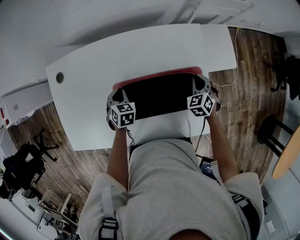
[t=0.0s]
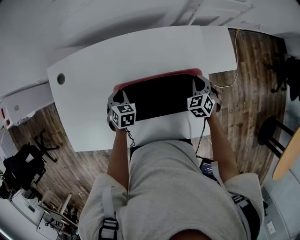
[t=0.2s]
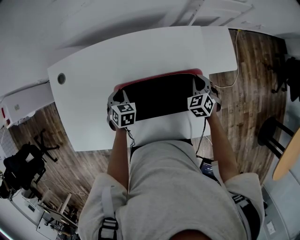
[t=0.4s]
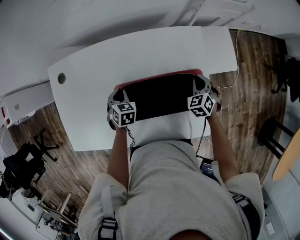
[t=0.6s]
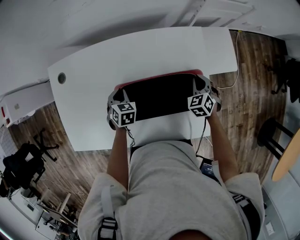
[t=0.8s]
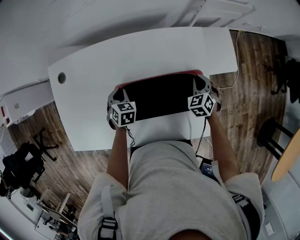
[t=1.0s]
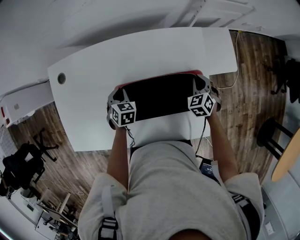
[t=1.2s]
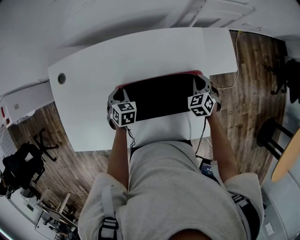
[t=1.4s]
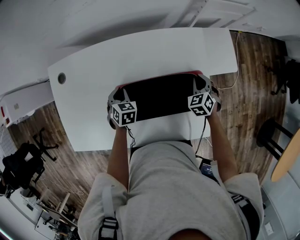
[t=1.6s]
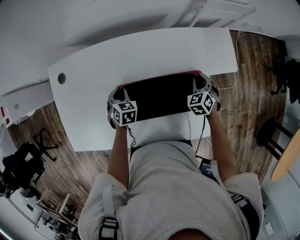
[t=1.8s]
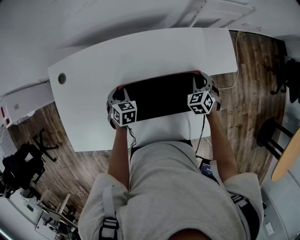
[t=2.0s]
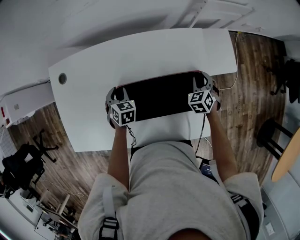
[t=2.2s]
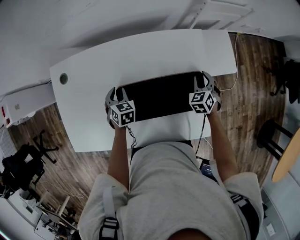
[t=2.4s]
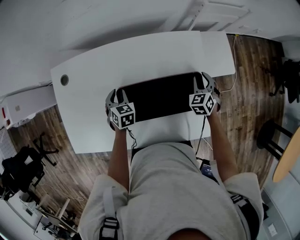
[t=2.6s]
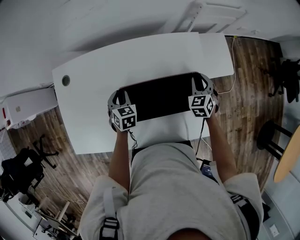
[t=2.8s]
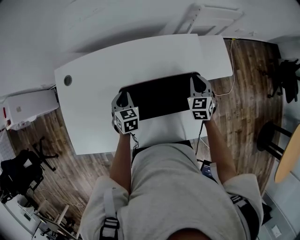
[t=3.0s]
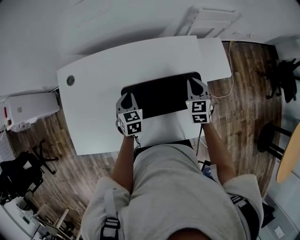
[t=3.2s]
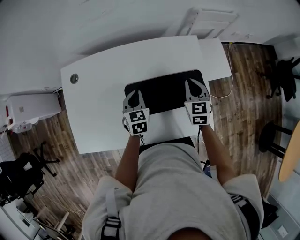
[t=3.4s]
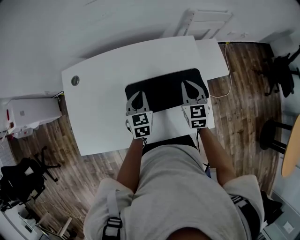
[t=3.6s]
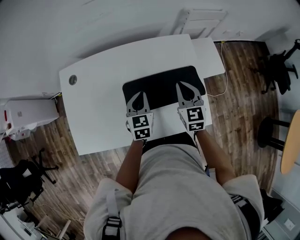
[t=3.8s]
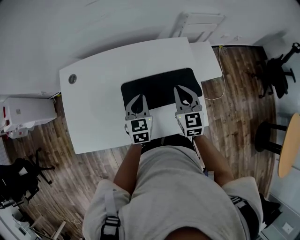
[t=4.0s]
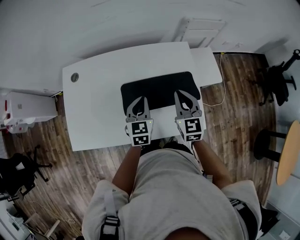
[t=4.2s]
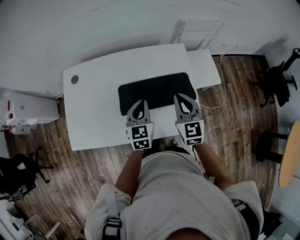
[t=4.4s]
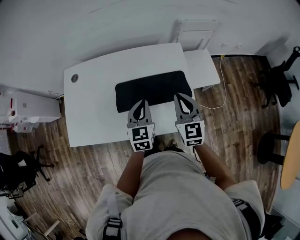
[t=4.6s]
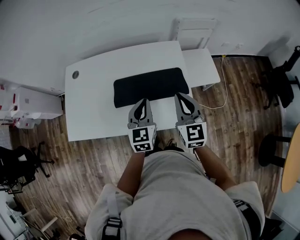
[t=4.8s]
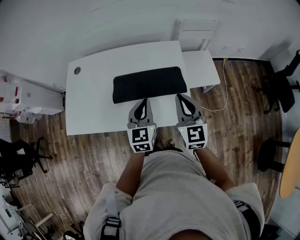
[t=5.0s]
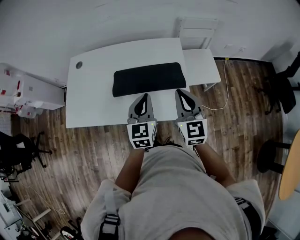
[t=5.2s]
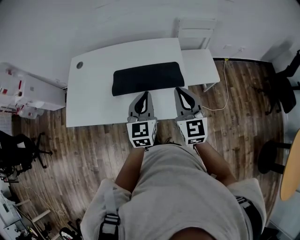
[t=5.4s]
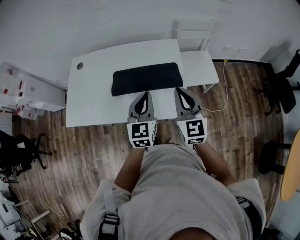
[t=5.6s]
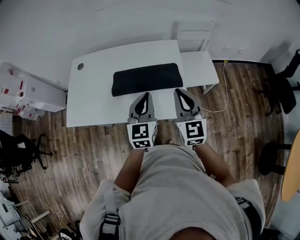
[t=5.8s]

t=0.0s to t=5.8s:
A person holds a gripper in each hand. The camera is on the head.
t=0.0s to t=1.4s: Neither gripper changes place.
t=1.4s to t=2.8s: The right gripper opens its fingers.
t=2.8s to t=4.4s: The right gripper is displaced upward, backward and to the left by roughly 25 cm, turns by roughly 30 degrees, and closes, while the left gripper shifts about 25 cm upward, backward and to the right, rotates some 30 degrees, and closes up.
t=4.4s to t=5.8s: The two grippers go about 20 cm backward, to the right and upward.

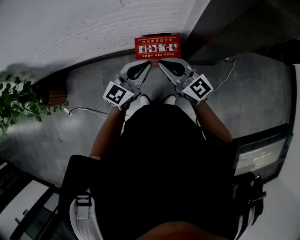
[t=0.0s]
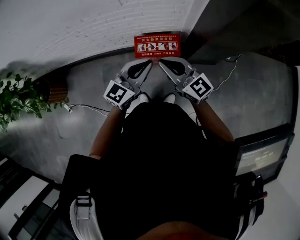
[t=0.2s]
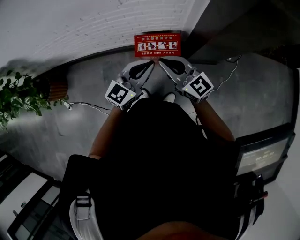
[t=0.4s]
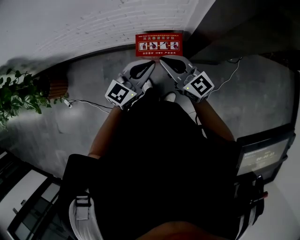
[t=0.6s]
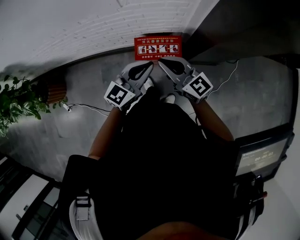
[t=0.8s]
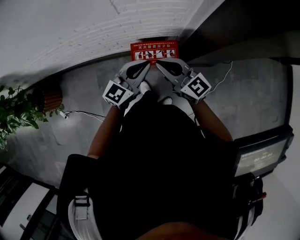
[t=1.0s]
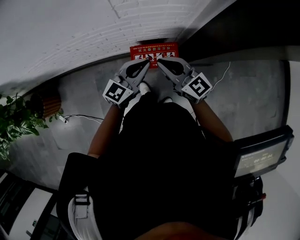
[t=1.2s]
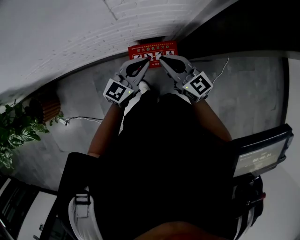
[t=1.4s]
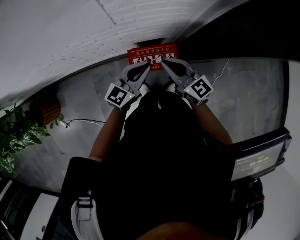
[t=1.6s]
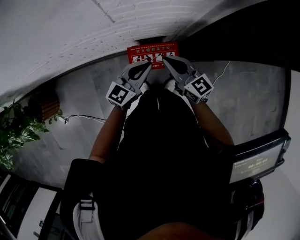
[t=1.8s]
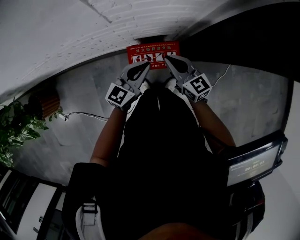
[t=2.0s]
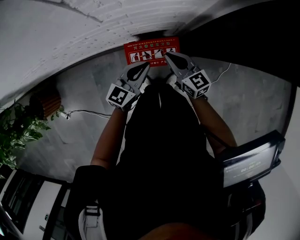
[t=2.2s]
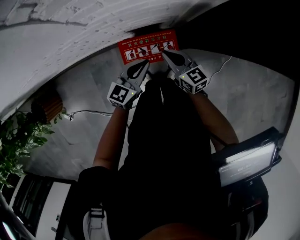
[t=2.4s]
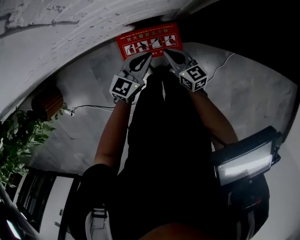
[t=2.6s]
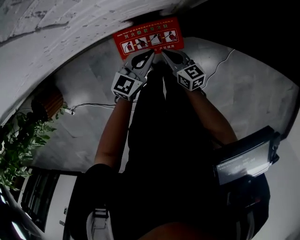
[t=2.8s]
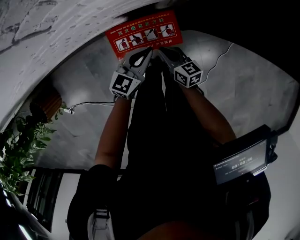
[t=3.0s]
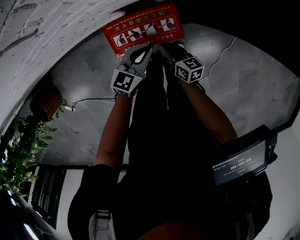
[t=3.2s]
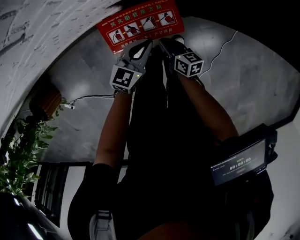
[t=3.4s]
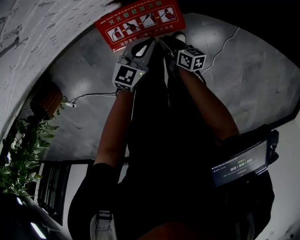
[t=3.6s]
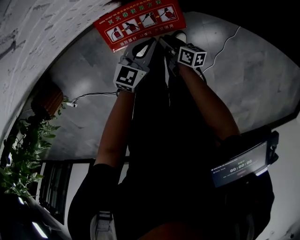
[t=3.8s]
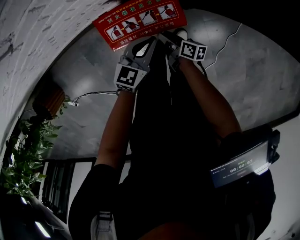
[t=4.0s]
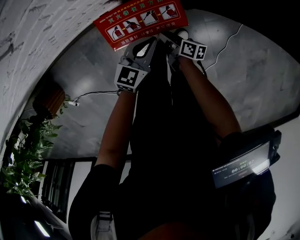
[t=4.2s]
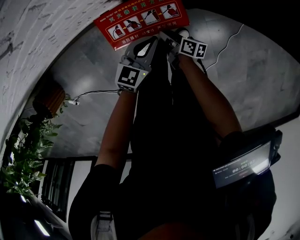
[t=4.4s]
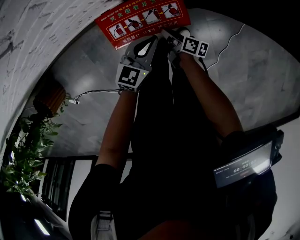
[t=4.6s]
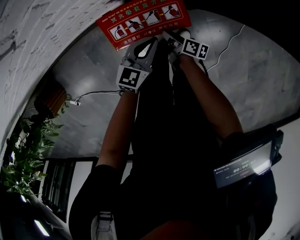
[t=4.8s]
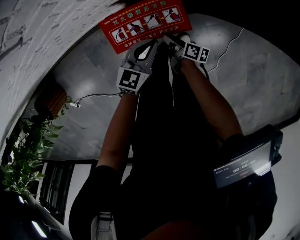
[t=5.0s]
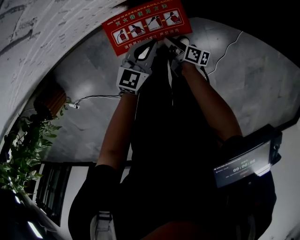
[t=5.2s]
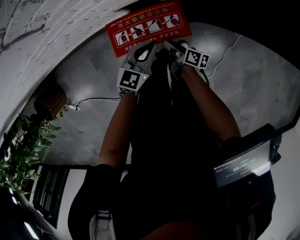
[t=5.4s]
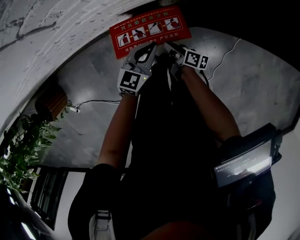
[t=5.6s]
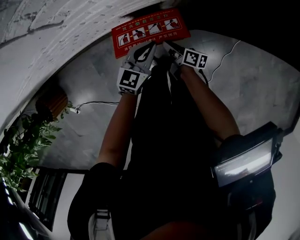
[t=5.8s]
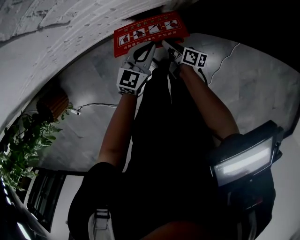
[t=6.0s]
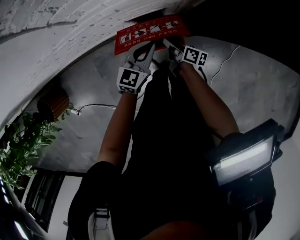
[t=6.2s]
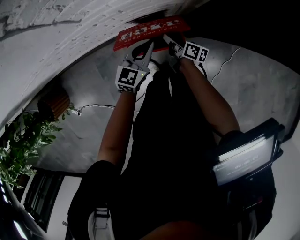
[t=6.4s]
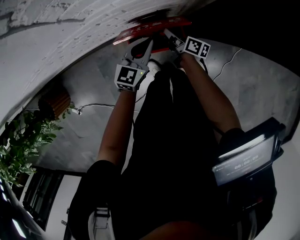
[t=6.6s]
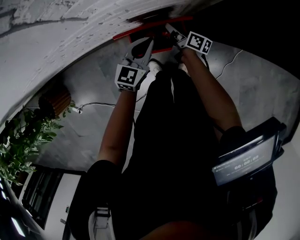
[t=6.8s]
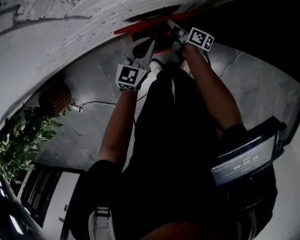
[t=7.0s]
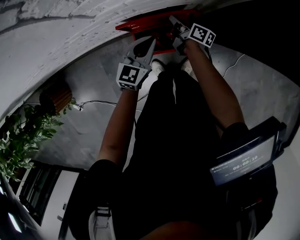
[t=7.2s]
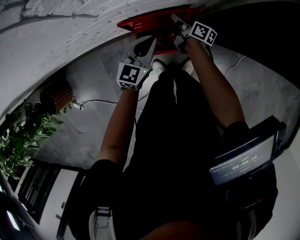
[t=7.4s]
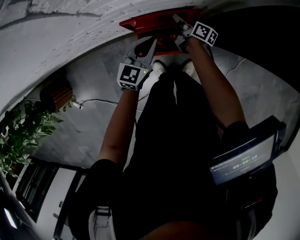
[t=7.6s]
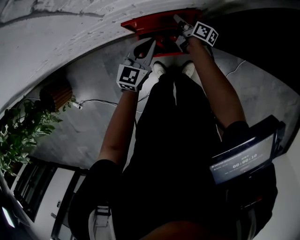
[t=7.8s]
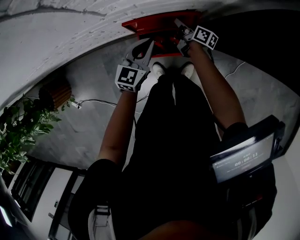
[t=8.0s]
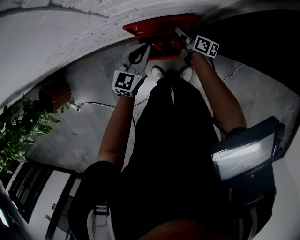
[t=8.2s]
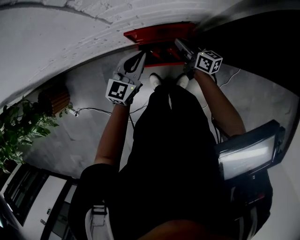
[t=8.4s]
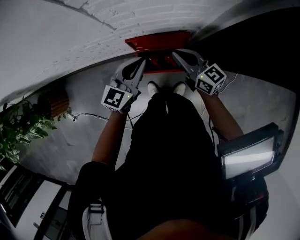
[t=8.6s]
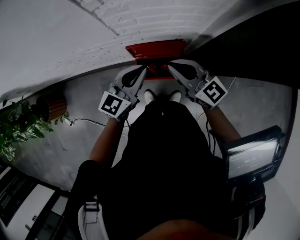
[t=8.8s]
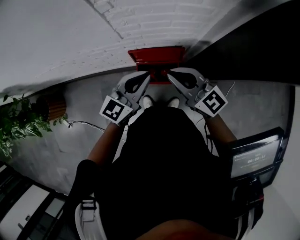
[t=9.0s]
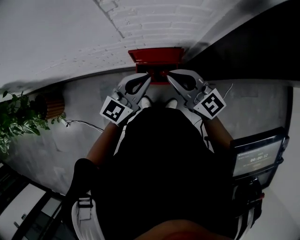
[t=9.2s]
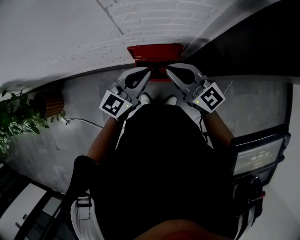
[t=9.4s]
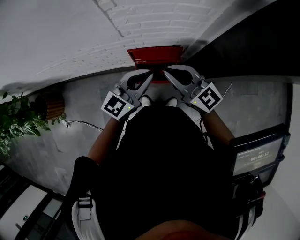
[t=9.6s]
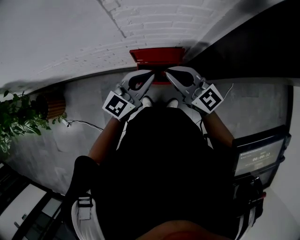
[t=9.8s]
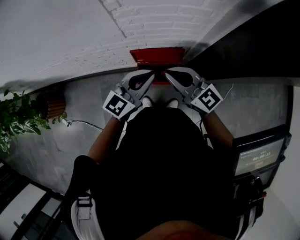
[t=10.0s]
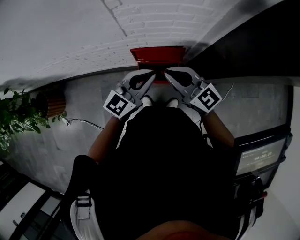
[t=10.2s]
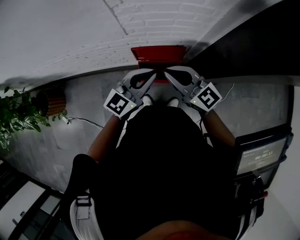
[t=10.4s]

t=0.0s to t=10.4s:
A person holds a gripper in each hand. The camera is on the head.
t=0.0s to t=1.4s: The two grippers go approximately 15 cm forward.
t=1.4s to t=3.0s: Both grippers travel together downward, approximately 35 cm. The right gripper changes its angle by about 40 degrees.
t=3.0s to t=4.4s: The right gripper heads downward, covering roughly 15 cm, changes its angle by about 40 degrees, and opens its fingers; the left gripper shifts some 10 cm downward.
t=4.4s to t=6.0s: The two grippers go roughly 15 cm upward. The right gripper closes.
t=6.0s to t=7.4s: The right gripper heads forward, covering about 15 cm. The left gripper heads to the left and forward, covering about 10 cm.
t=7.4s to t=9.0s: The right gripper travels upward and backward by some 50 cm, and twists about 70 degrees counterclockwise, seen from behind. Meanwhile the left gripper moves upward, some 25 cm.
t=9.0s to t=10.4s: The grippers move only a little.

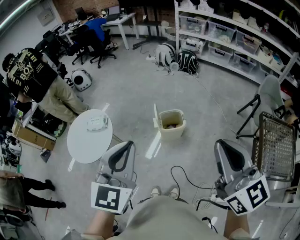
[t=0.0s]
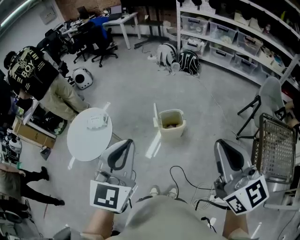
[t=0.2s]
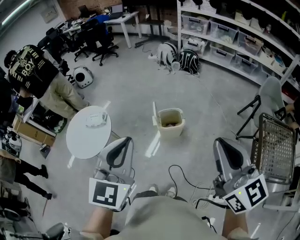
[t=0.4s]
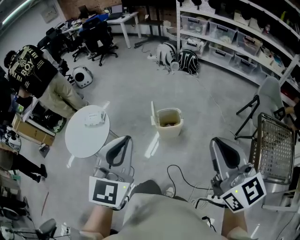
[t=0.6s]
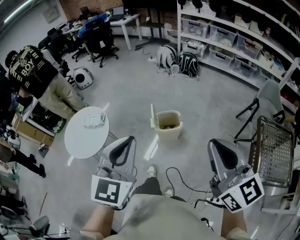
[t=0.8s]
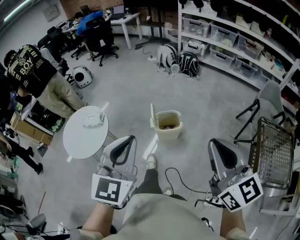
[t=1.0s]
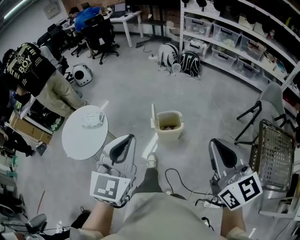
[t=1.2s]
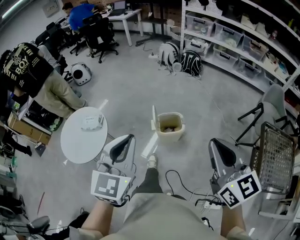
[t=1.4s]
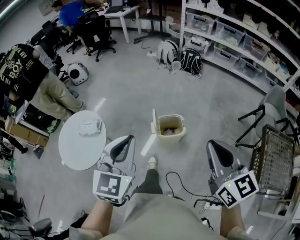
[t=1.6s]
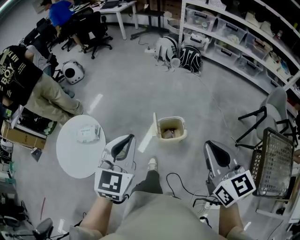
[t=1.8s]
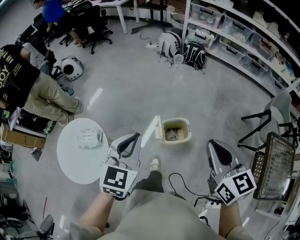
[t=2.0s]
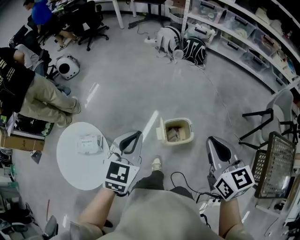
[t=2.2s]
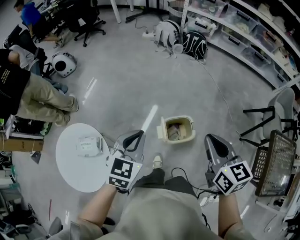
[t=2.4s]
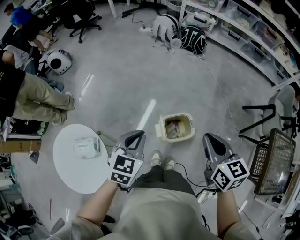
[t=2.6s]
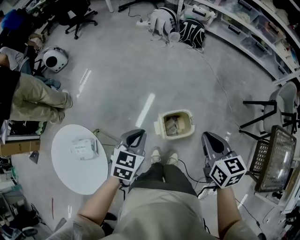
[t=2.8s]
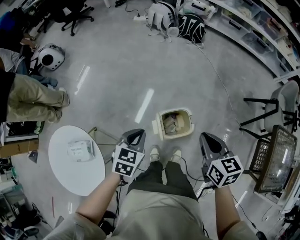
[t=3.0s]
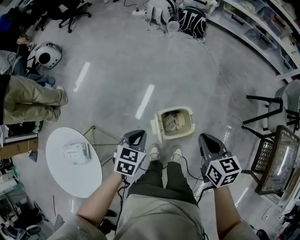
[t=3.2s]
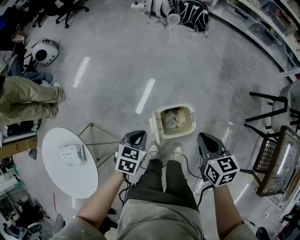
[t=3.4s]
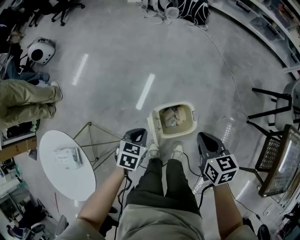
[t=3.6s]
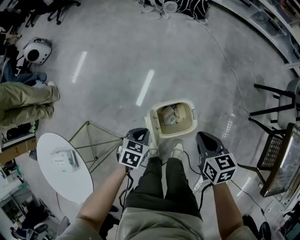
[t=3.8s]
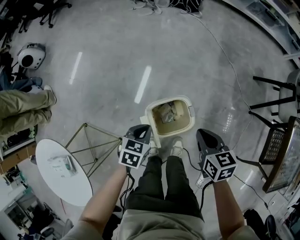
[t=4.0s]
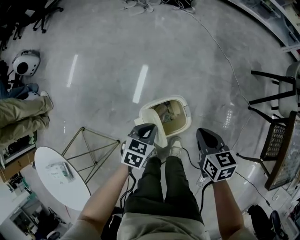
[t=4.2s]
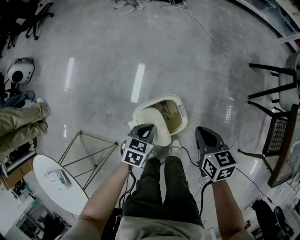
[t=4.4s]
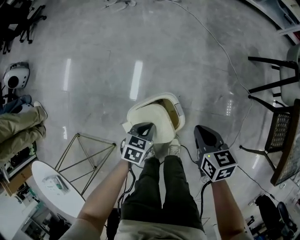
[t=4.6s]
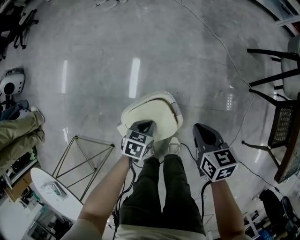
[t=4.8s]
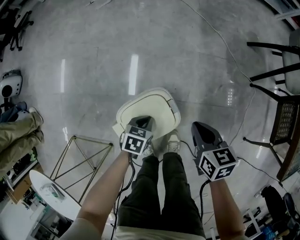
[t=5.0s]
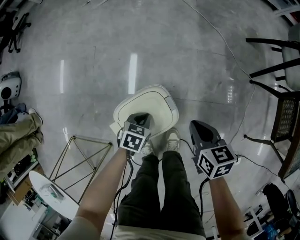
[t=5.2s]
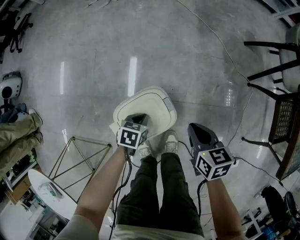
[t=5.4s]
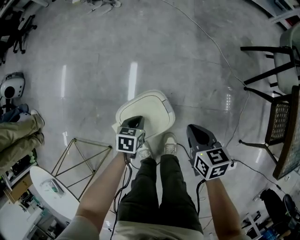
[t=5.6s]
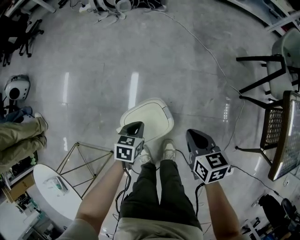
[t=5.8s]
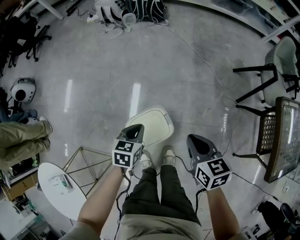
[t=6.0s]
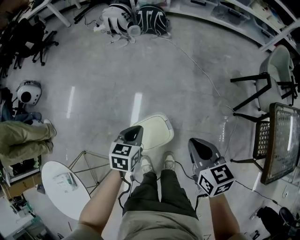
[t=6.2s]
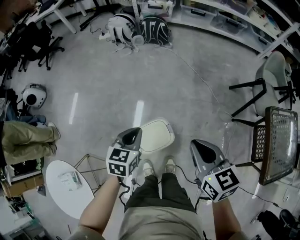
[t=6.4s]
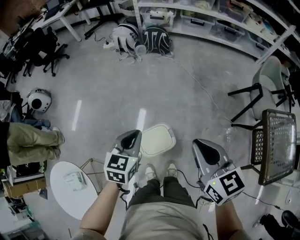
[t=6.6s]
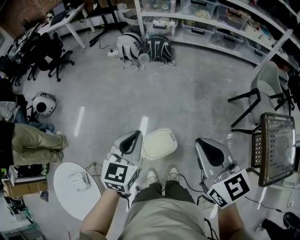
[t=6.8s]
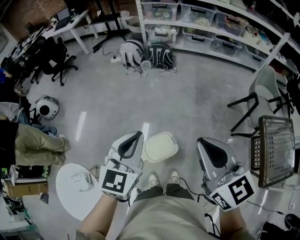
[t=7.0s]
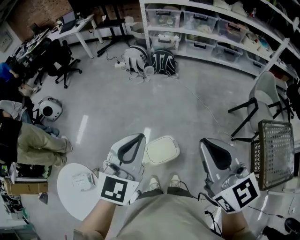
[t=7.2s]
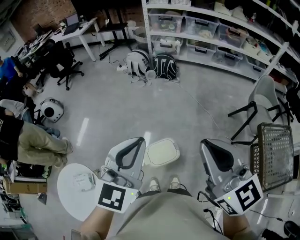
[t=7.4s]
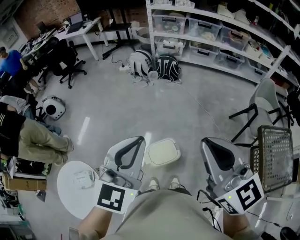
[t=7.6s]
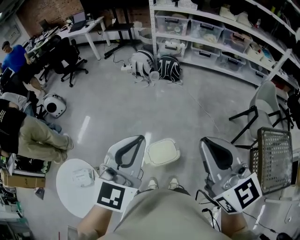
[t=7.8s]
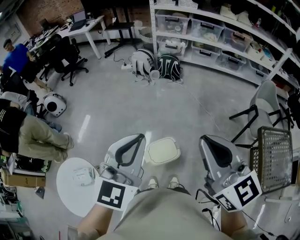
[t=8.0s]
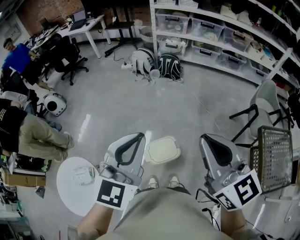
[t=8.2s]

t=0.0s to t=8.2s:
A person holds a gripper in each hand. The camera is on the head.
t=0.0s to t=1.6s: Both grippers travel together forward and downward, some 15 cm.
t=1.6s to t=3.2s: Both grippers travel together downward and forward, approximately 40 cm. The left gripper points its fingers some 30 degrees further downward. Meanwhile the right gripper swivels some 30 degrees.
t=3.2s to t=5.0s: Both grippers travel together downward and to the right, some 35 cm. The left gripper changes its angle by some 30 degrees.
t=5.0s to t=6.6s: Both grippers travel together upward, some 50 cm. The right gripper changes its angle by about 30 degrees; the left gripper swivels approximately 40 degrees.
t=6.6s to t=8.2s: The two grippers go approximately 25 cm upward. The right gripper turns by roughly 20 degrees; the left gripper rotates about 30 degrees.
